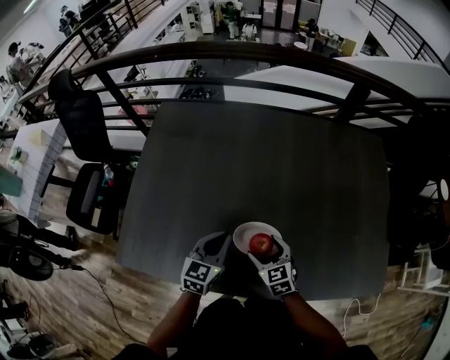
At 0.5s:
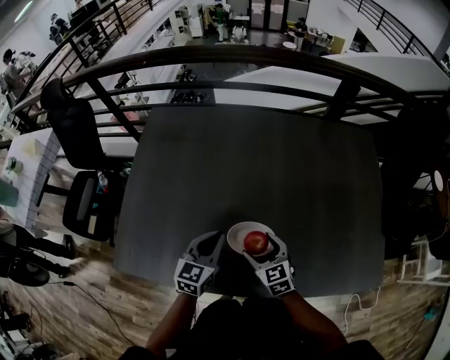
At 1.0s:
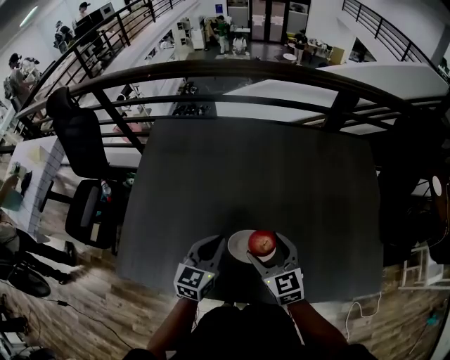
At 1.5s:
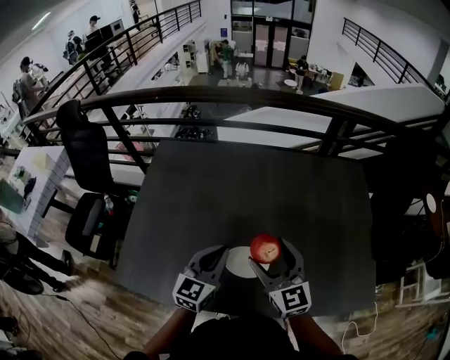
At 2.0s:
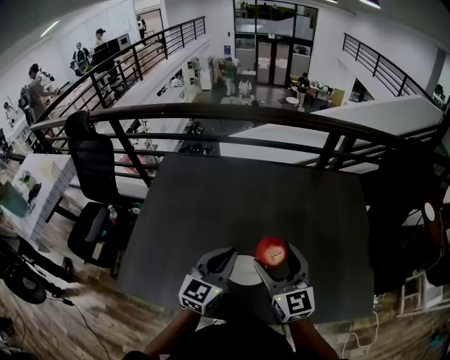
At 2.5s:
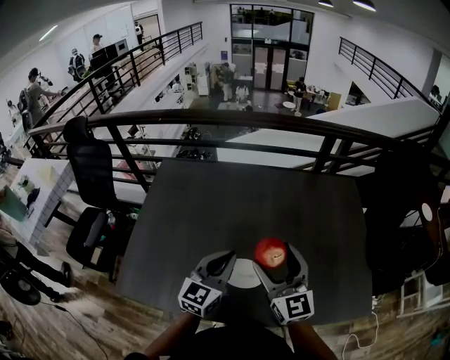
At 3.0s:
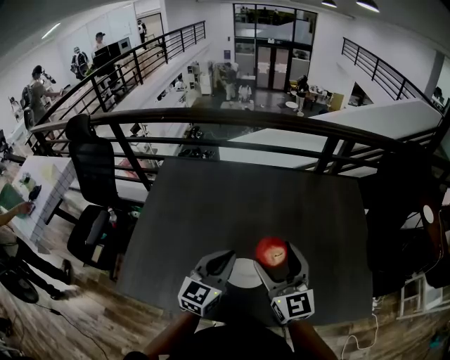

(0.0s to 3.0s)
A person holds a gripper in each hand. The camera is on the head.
0.0s - 1.5s: The left gripper goes about 10 cm upward. The right gripper travels upward by about 25 cm, and tilts its fingers some 30 degrees upward.
1.5s - 3.0s: The right gripper travels upward by approximately 5 cm.

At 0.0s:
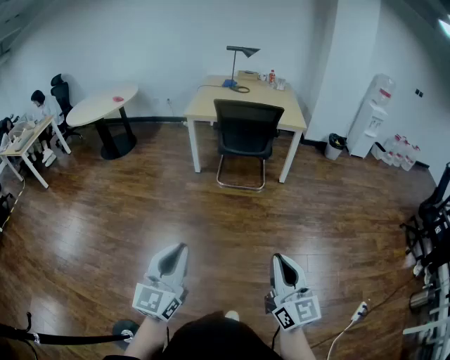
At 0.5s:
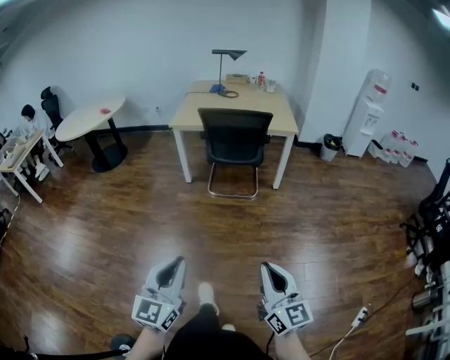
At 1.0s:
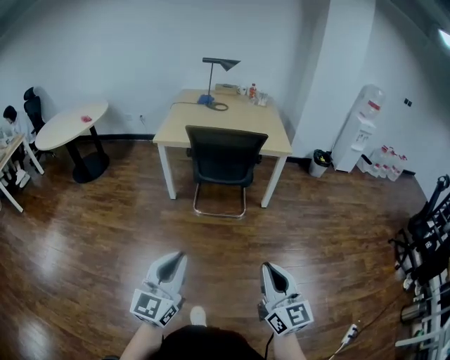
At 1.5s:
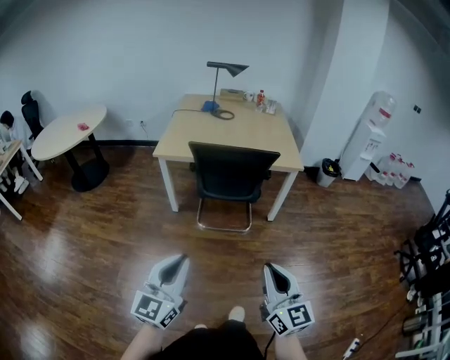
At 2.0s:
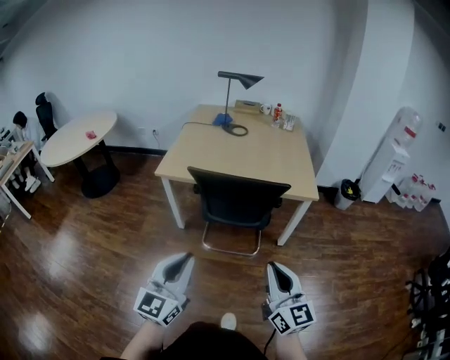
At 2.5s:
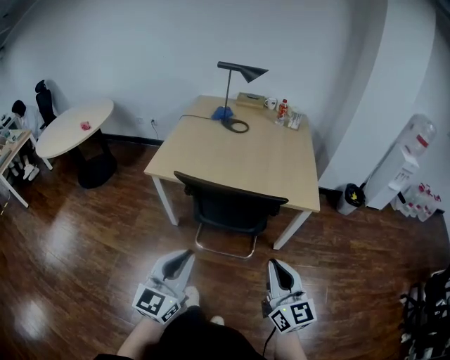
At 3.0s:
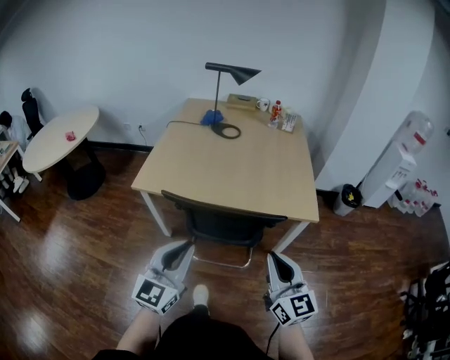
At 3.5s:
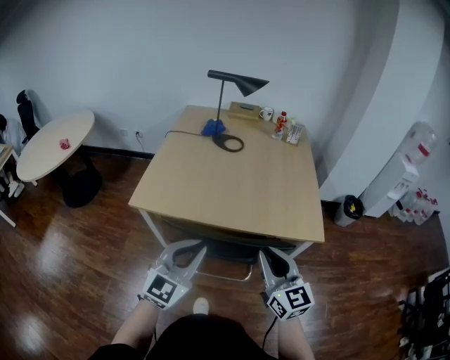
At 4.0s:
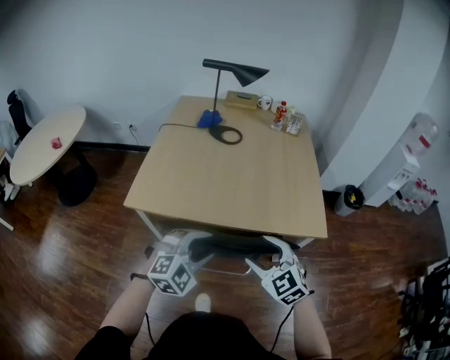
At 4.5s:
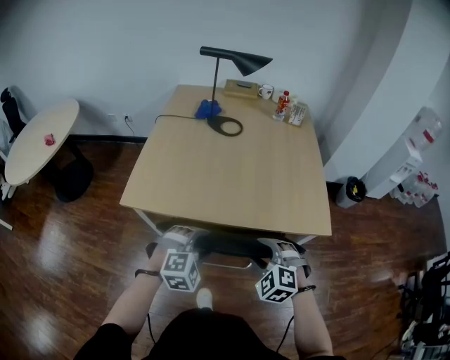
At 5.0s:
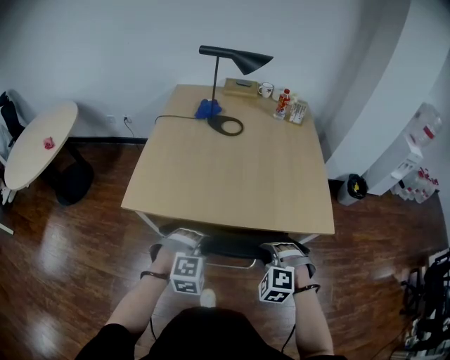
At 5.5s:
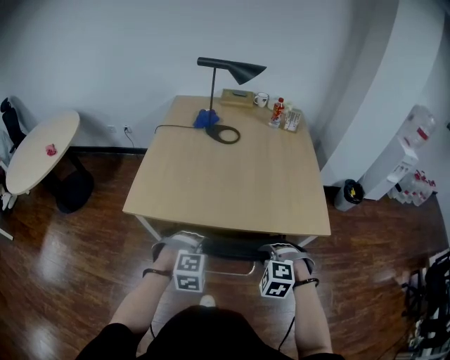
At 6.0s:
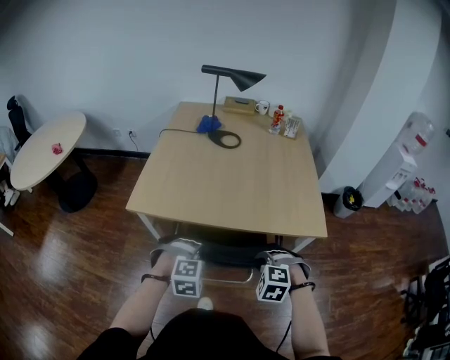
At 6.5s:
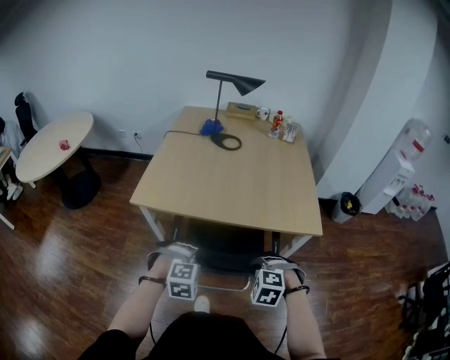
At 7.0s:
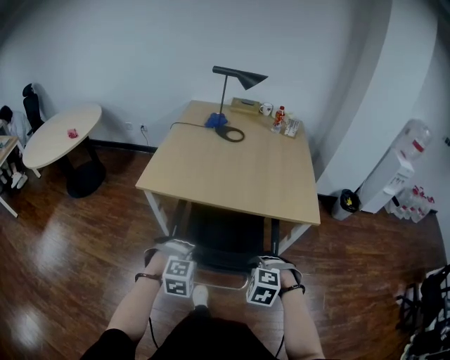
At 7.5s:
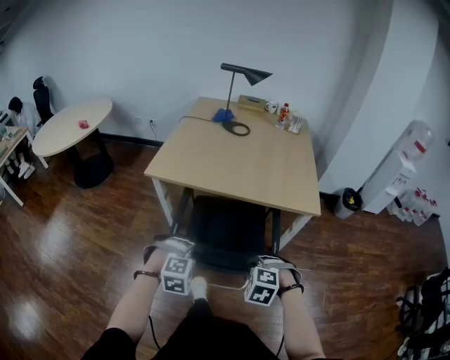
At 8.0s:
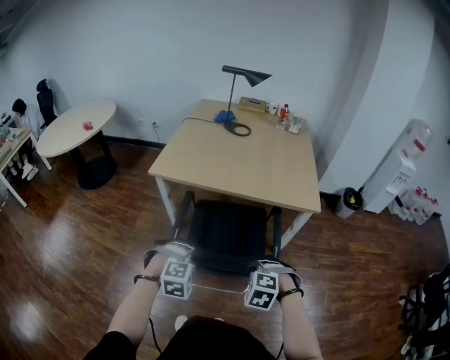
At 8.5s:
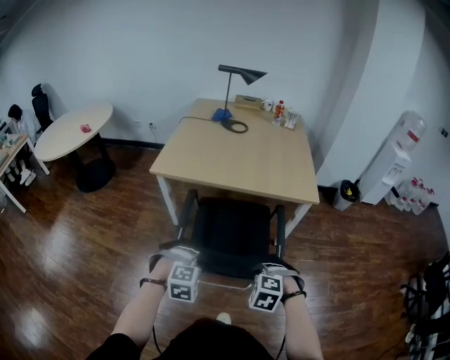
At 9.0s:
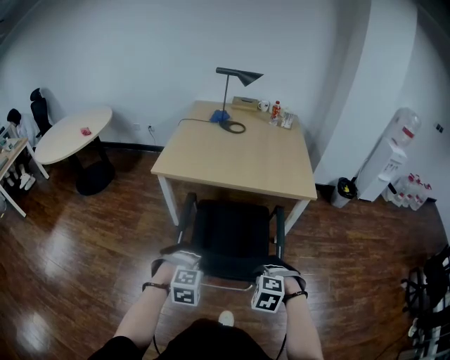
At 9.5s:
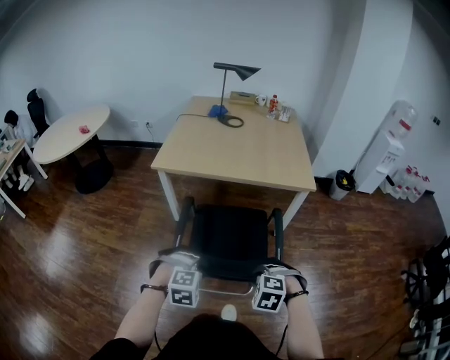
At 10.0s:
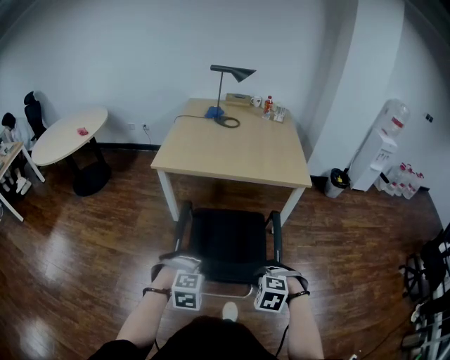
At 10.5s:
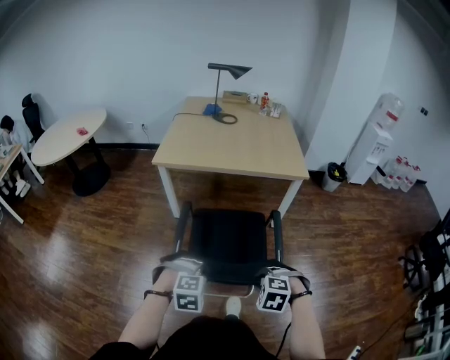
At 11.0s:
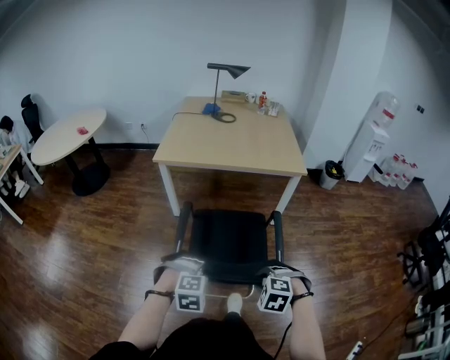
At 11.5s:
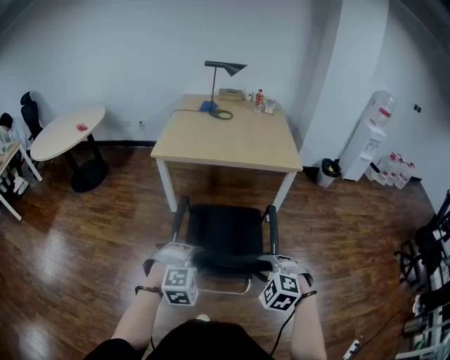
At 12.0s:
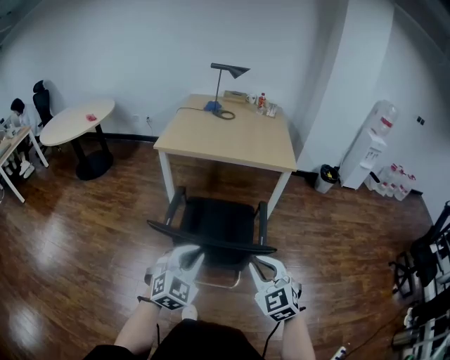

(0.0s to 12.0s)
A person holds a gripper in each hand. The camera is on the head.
0.0s - 2.0s: Both grippers are carried forward, some 50 cm.
2.0s - 4.0s: Both grippers move forward, some 35 cm. The left gripper angles its fingers downward, by roughly 40 degrees, and opens its fingers. Meanwhile the right gripper tips its fingers downward by approximately 30 degrees, and opens.
4.0s - 6.0s: The two grippers go some 10 cm downward. The left gripper changes its angle by roughly 30 degrees, and opens and closes again; the right gripper points its fingers approximately 30 degrees further downward, and closes up.
6.0s - 8.0s: Both grippers move backward, some 25 cm.
8.0s - 10.0s: Both grippers move backward, approximately 15 cm.
10.0s - 12.0s: The two grippers go approximately 20 cm upward and backward. The right gripper points its fingers roughly 50 degrees further upward, and opens, then closes once more, while the left gripper tips its fingers upward by some 40 degrees, and opens, then closes once more.

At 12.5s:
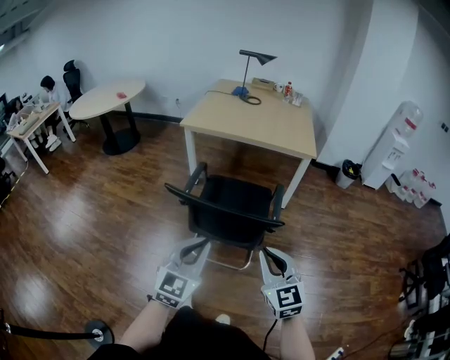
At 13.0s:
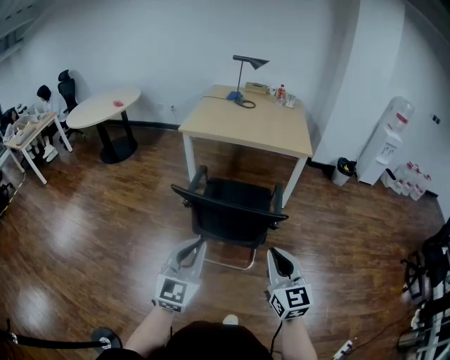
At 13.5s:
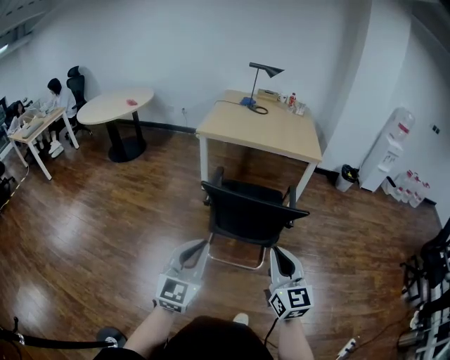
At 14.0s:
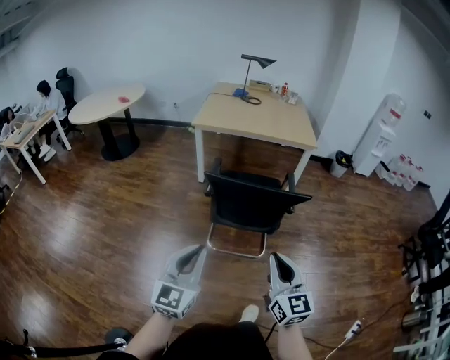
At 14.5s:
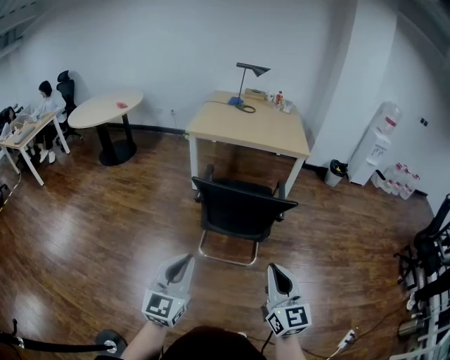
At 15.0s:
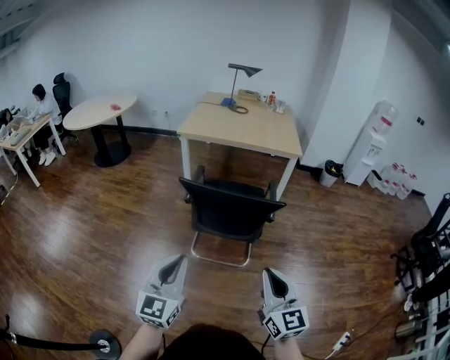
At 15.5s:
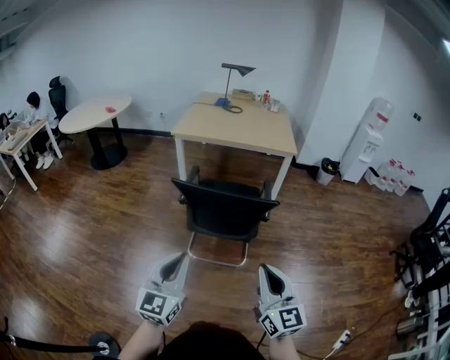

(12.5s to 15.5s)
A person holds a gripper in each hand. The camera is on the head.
12.5s - 14.0s: The left gripper heads to the left and backward, covering some 25 cm. The right gripper heads backward and to the left, covering approximately 20 cm, and turns by about 20 degrees.
14.0s - 15.5s: Both grippers travel together to the right, approximately 10 cm.

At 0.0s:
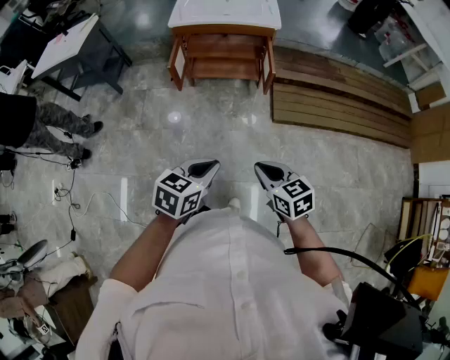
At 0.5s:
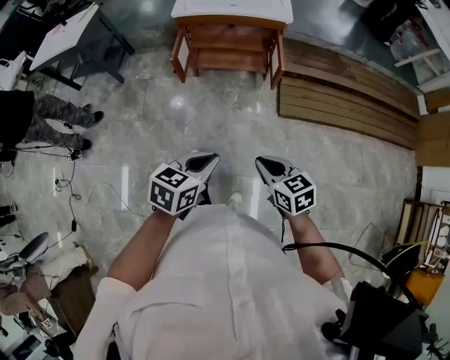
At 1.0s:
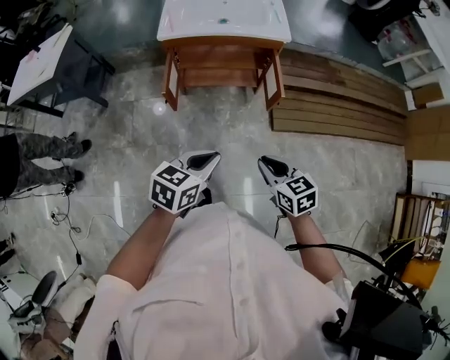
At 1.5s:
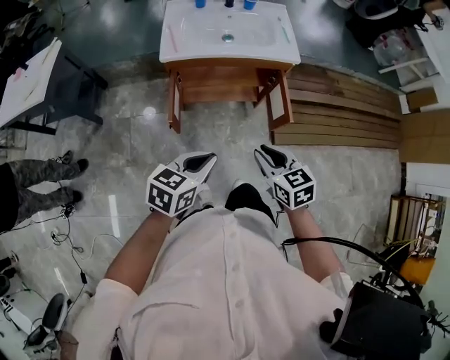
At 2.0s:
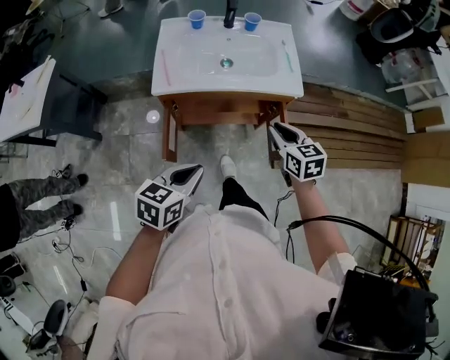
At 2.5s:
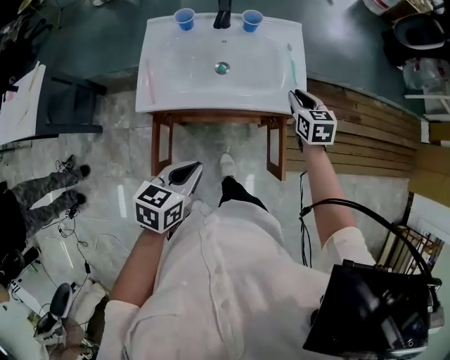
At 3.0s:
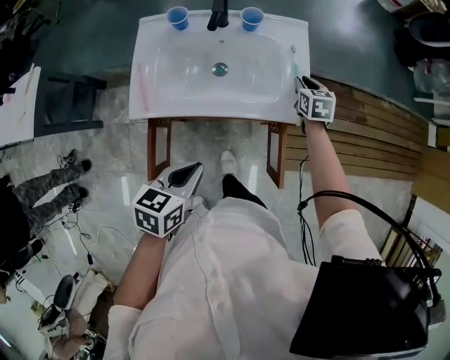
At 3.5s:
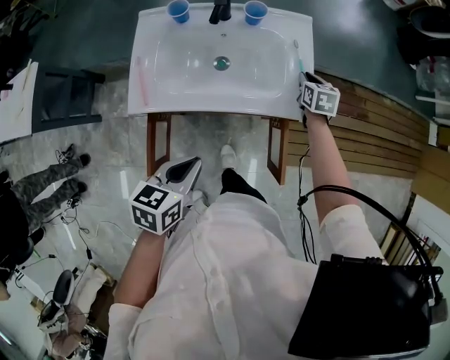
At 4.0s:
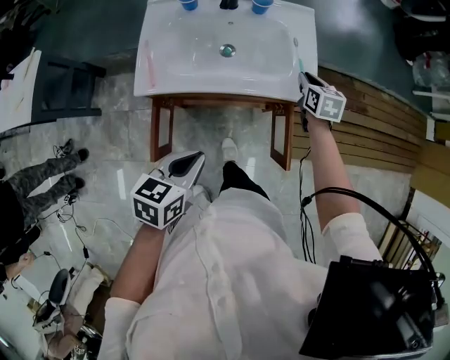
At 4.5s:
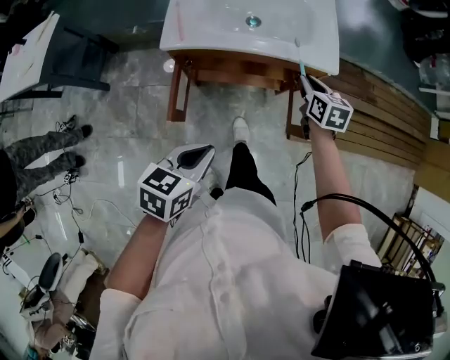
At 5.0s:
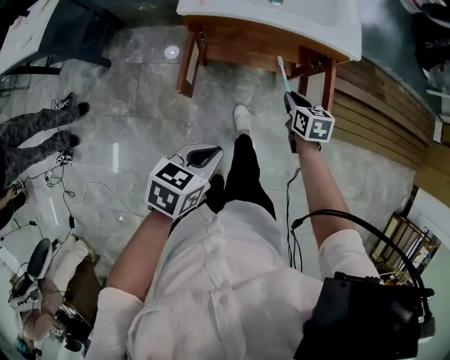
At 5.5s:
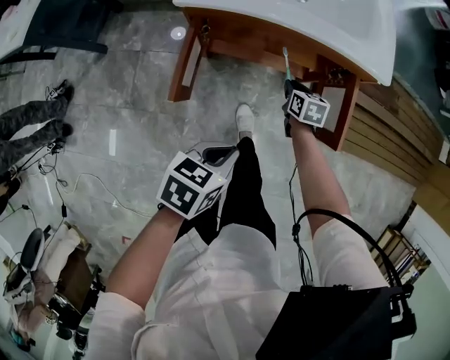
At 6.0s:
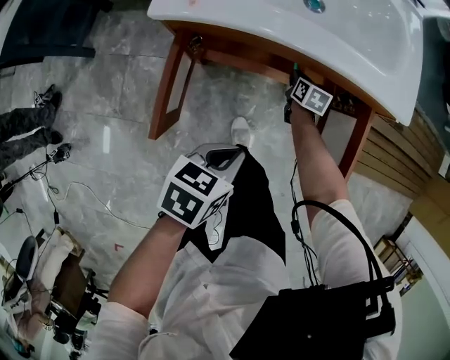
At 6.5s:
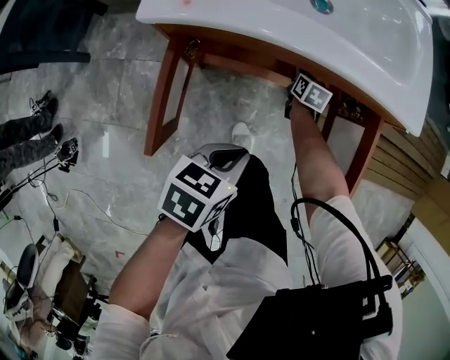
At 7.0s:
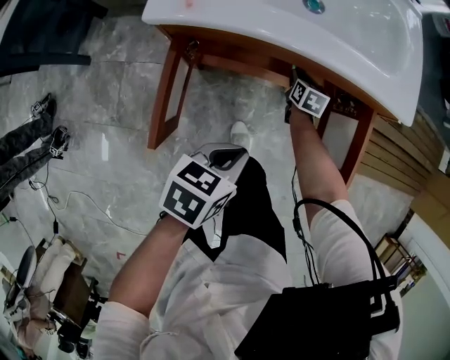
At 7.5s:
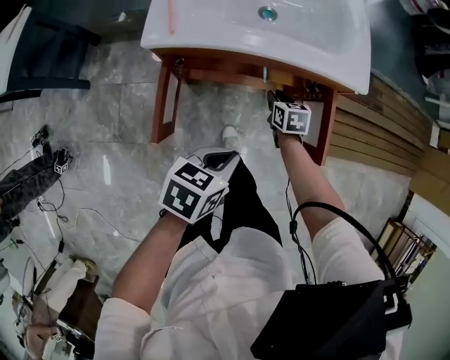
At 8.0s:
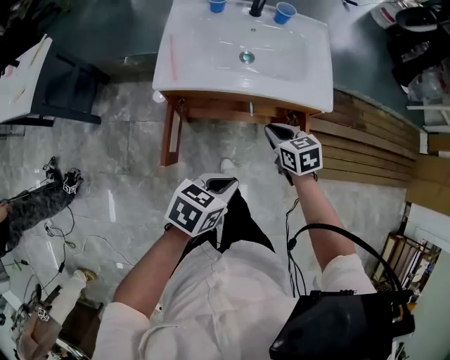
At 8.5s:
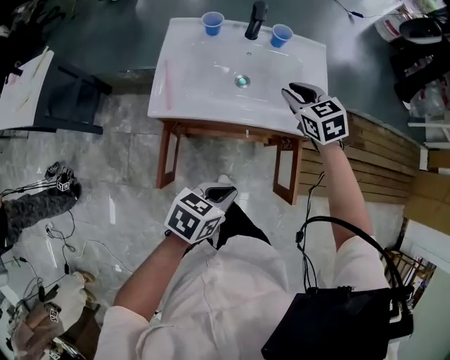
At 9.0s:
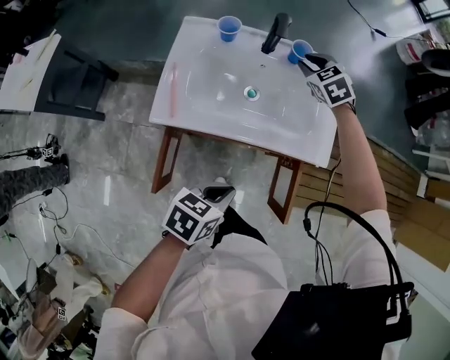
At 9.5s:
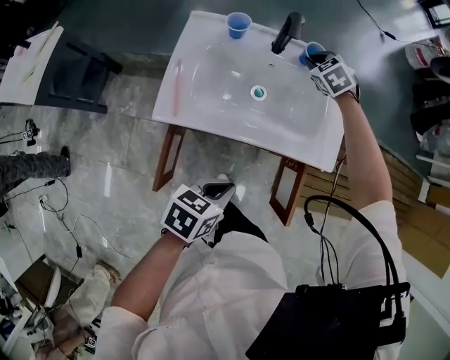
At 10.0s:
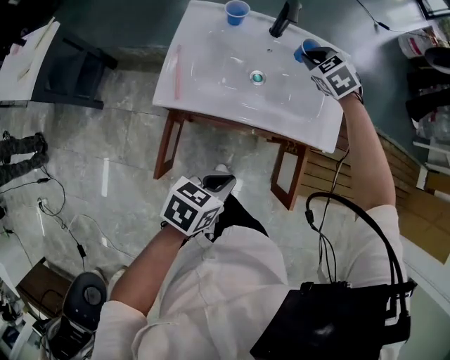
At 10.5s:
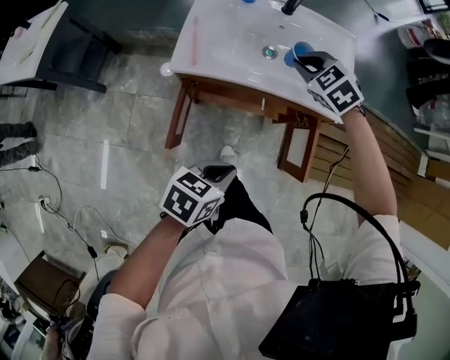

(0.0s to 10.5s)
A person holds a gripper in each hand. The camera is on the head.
0.0s - 2.0s: The two grippers travel together, forward, approximately 50 cm.
2.0s - 4.0s: The left gripper travels forward by some 15 cm. The right gripper shifts some 30 cm forward.
4.0s - 6.5s: The right gripper heads downward, covering some 40 cm, while the left gripper travels downward by roughly 25 cm.
6.5s - 8.5s: The right gripper is displaced upward by roughly 50 cm, and changes its angle by approximately 40 degrees. The left gripper moves upward, roughly 20 cm.
8.5s - 10.5s: The left gripper travels backward by about 5 cm. The right gripper goes roughly 10 cm to the left, travels forward and back again, some 20 cm each way, and changes its angle by some 30 degrees.
